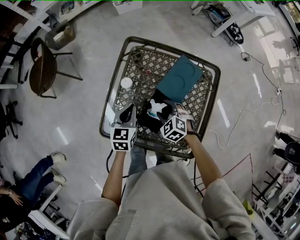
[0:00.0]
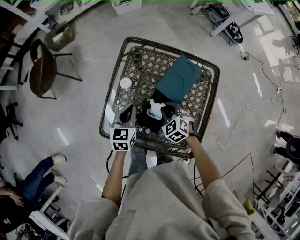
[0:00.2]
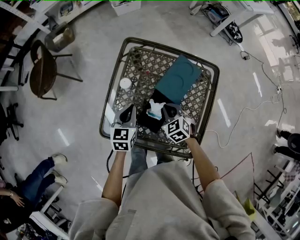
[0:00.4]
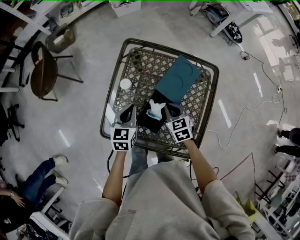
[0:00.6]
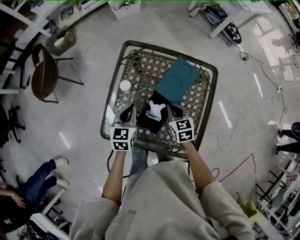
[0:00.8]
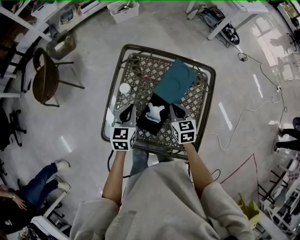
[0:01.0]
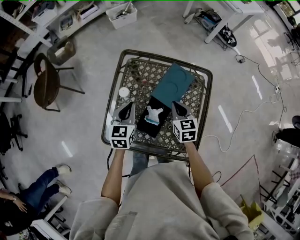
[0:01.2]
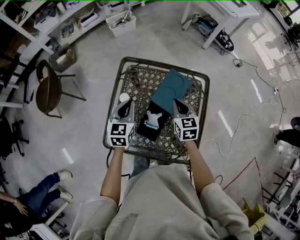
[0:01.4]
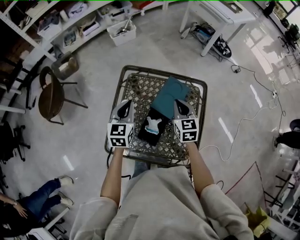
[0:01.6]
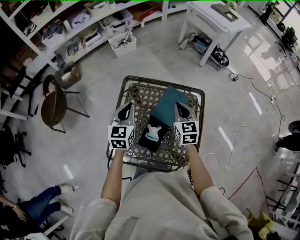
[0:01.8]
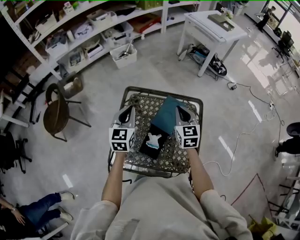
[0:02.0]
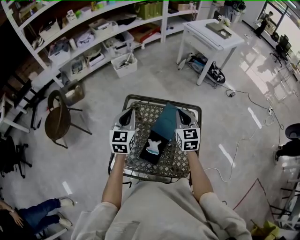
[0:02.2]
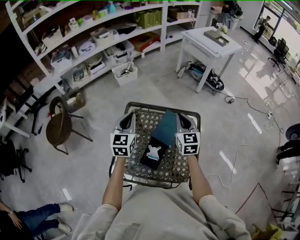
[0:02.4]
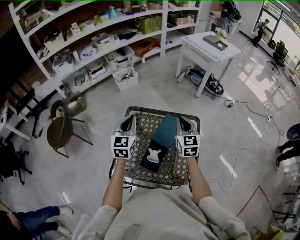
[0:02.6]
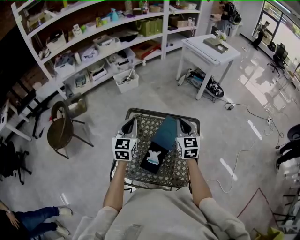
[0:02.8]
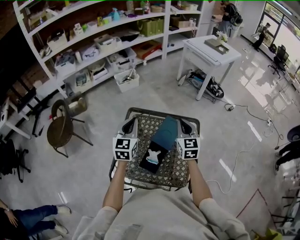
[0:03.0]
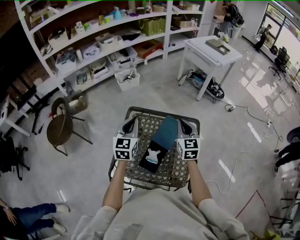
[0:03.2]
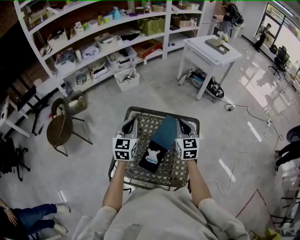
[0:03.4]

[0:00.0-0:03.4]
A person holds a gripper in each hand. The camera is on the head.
0:00.0 to 0:01.6: The right gripper is displaced upward, to the right and forward by some 25 cm, changes its angle by about 50 degrees, and closes its fingers. The left gripper goes some 15 cm upward and forward.
0:01.6 to 0:03.4: The two grippers go approximately 15 cm upward.

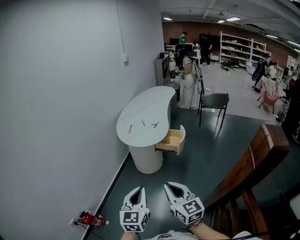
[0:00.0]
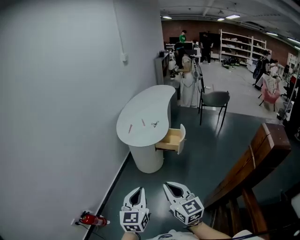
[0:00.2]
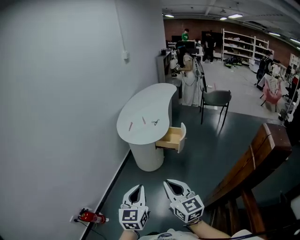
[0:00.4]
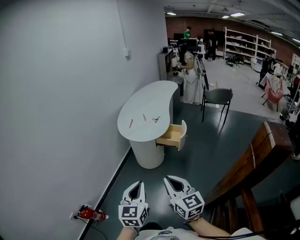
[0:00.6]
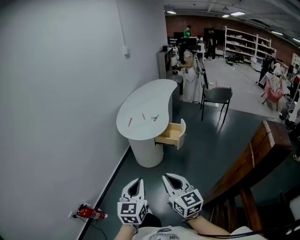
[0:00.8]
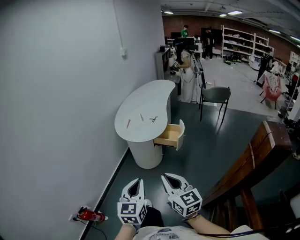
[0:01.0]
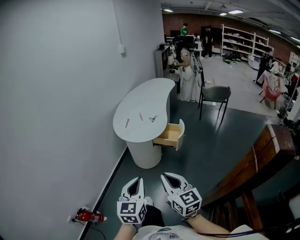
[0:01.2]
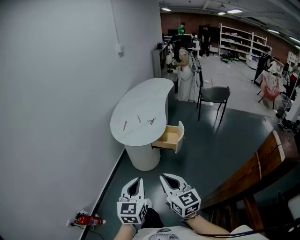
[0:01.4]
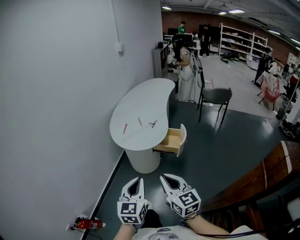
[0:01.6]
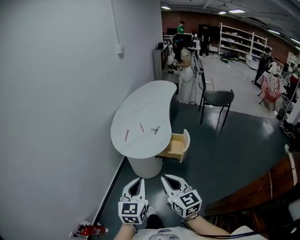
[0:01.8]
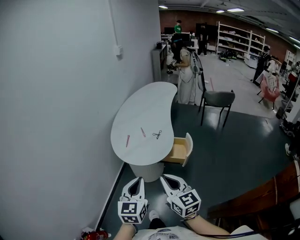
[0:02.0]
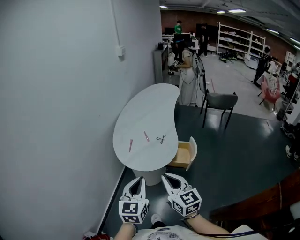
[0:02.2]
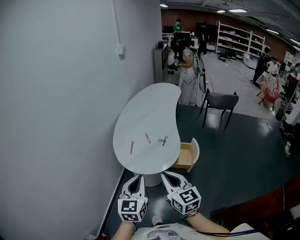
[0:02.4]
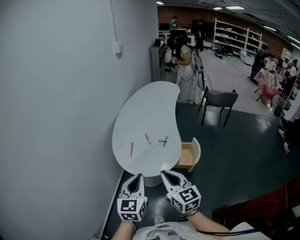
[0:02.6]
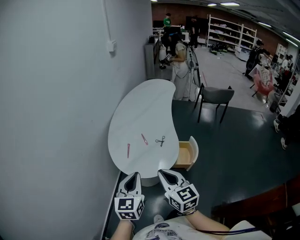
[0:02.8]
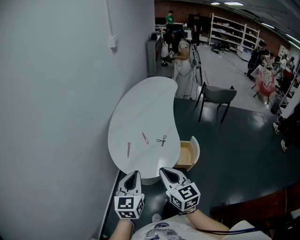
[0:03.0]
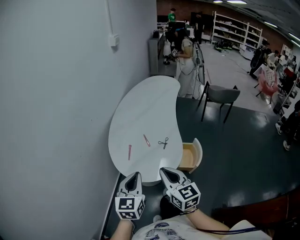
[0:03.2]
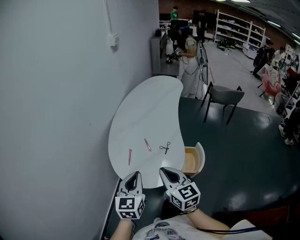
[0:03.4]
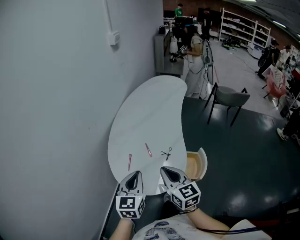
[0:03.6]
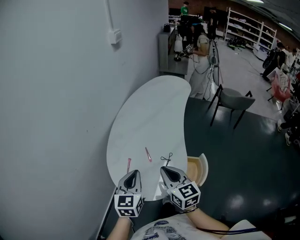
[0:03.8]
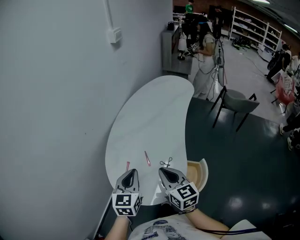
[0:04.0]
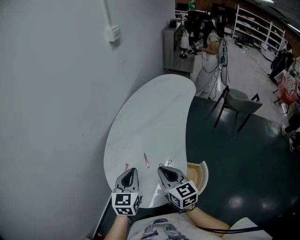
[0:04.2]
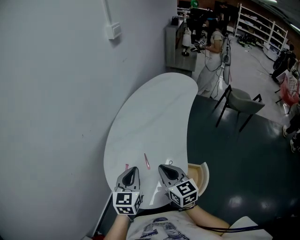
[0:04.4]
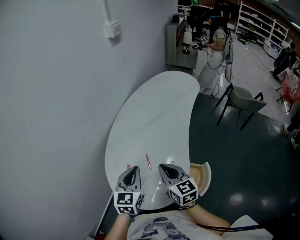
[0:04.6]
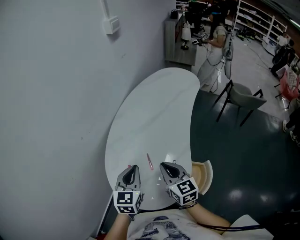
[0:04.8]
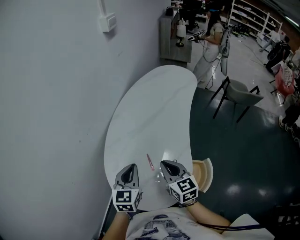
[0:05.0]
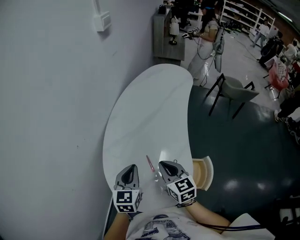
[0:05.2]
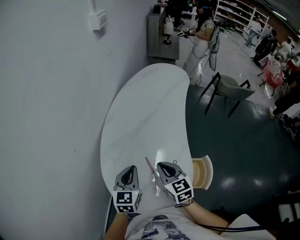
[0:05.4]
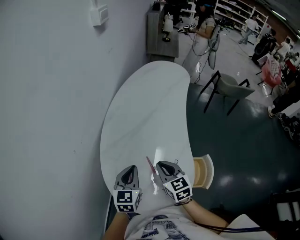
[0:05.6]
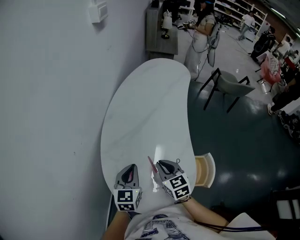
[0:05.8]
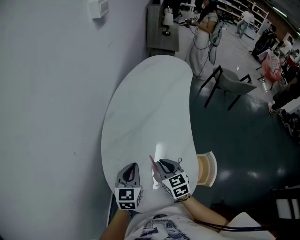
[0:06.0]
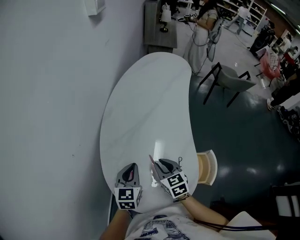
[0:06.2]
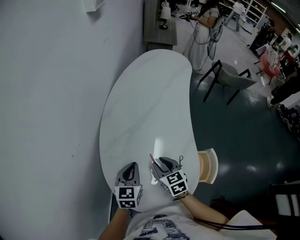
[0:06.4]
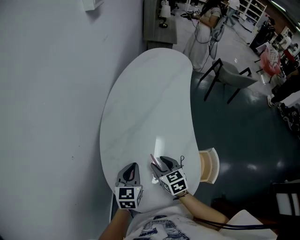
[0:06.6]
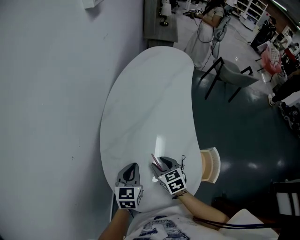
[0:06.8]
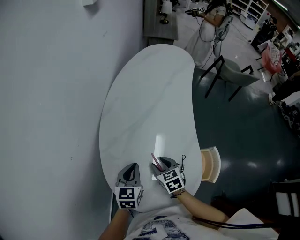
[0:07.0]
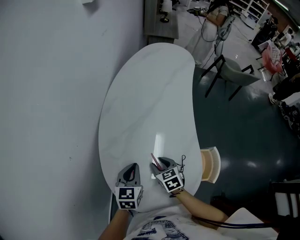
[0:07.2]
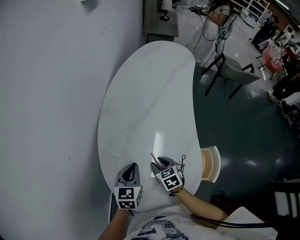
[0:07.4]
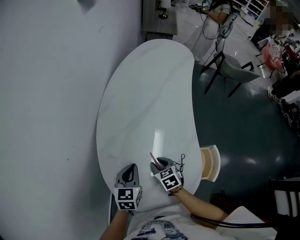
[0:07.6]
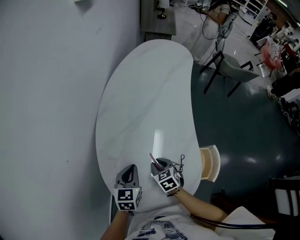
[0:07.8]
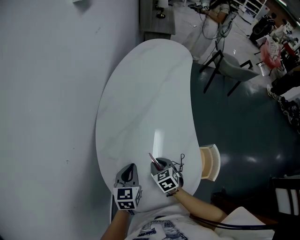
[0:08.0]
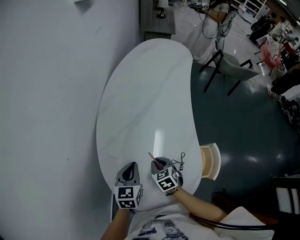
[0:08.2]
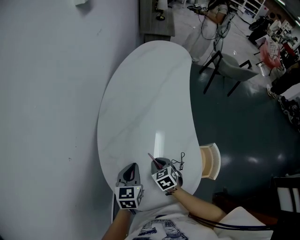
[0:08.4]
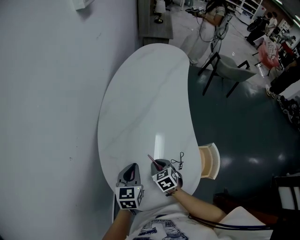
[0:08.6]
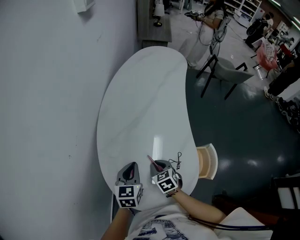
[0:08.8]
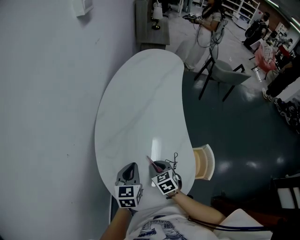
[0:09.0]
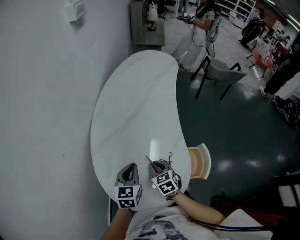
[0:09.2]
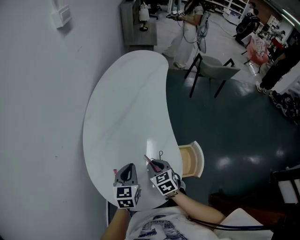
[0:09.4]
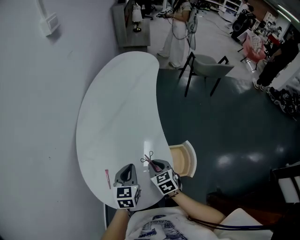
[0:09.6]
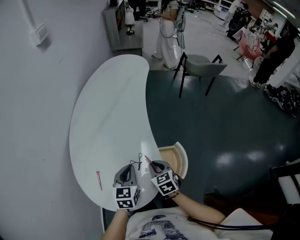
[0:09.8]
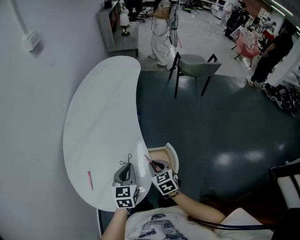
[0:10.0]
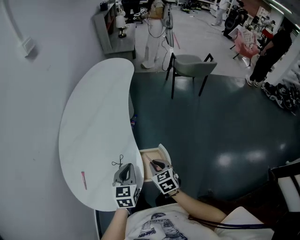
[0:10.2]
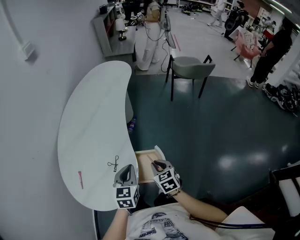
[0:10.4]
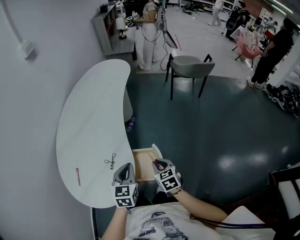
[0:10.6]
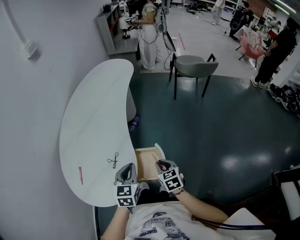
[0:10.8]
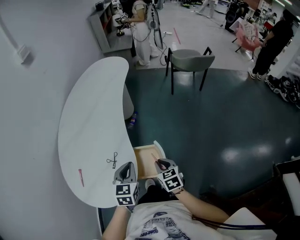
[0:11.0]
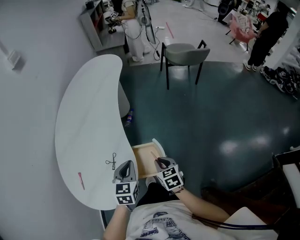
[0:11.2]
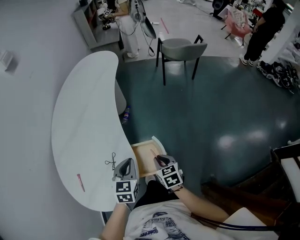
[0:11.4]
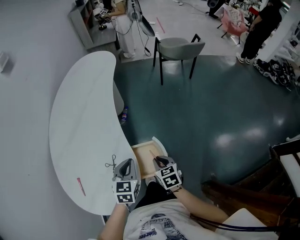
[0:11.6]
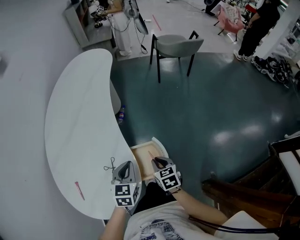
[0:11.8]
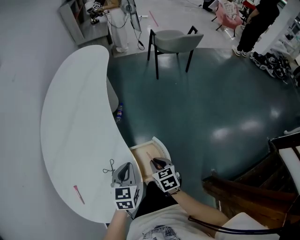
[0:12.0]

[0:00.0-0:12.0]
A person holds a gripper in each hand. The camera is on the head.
0:00.0 to 0:01.6: The two grippers go roughly 15 cm forward.
0:01.6 to 0:03.0: The grippers both shift forward by some 30 cm.
0:03.0 to 0:04.4: The grippers both shift forward by about 30 cm.
0:04.4 to 0:06.0: The right gripper shifts some 15 cm downward, forward and to the left, and swivels approximately 20 degrees, while the left gripper heads forward, downward and to the left, covering some 15 cm.
0:06.0 to 0:07.6: The right gripper travels downward by roughly 15 cm, and opens its fingers. Meanwhile the left gripper travels downward by some 5 cm.
0:07.6 to 0:09.0: The right gripper moves some 5 cm.
0:09.0 to 0:10.4: The grippers both shift to the right by roughly 35 cm.
0:10.4 to 0:12.0: Both grippers travel together downward, approximately 10 cm.

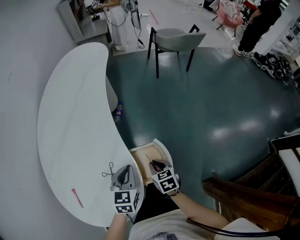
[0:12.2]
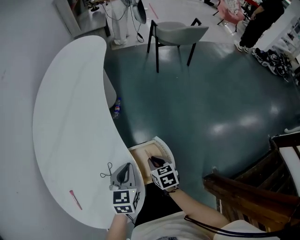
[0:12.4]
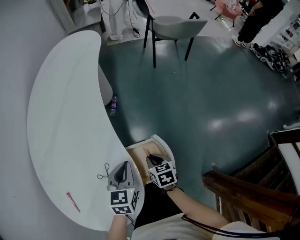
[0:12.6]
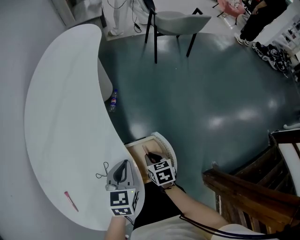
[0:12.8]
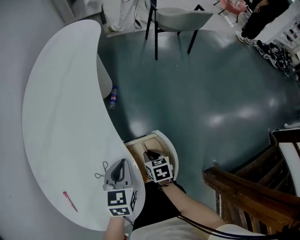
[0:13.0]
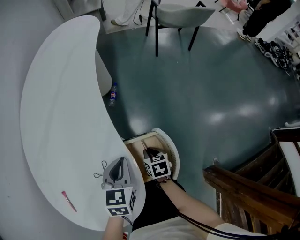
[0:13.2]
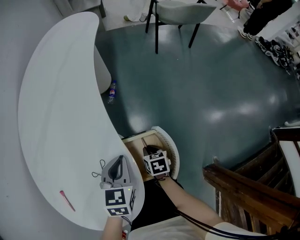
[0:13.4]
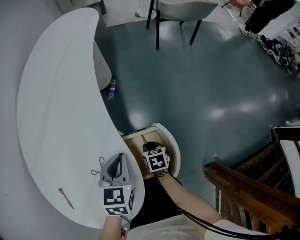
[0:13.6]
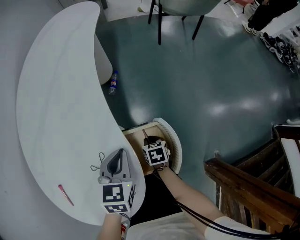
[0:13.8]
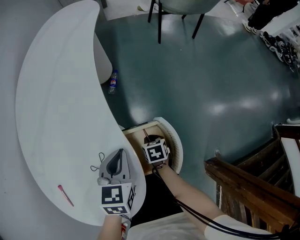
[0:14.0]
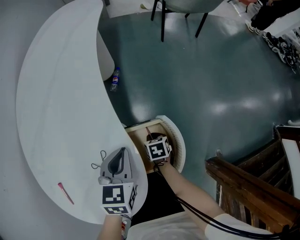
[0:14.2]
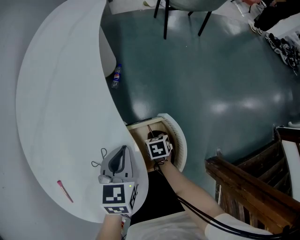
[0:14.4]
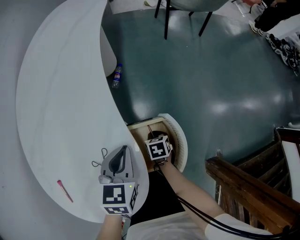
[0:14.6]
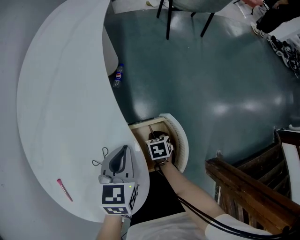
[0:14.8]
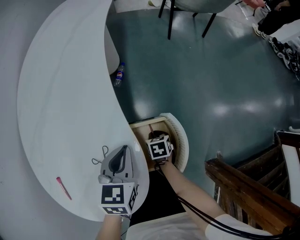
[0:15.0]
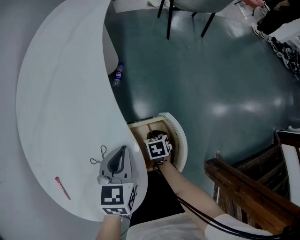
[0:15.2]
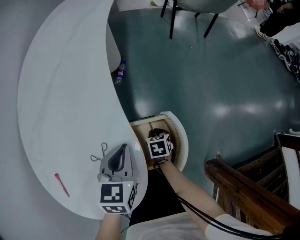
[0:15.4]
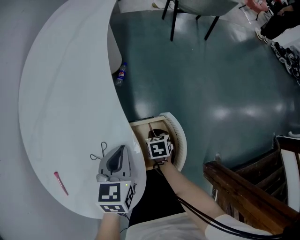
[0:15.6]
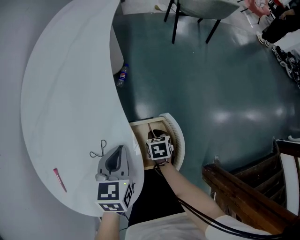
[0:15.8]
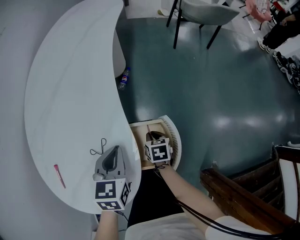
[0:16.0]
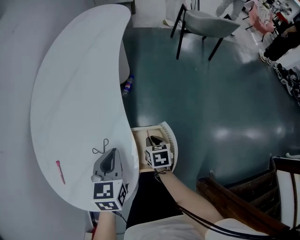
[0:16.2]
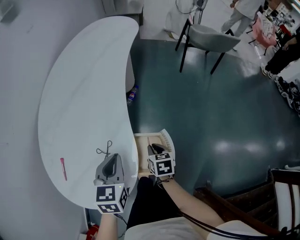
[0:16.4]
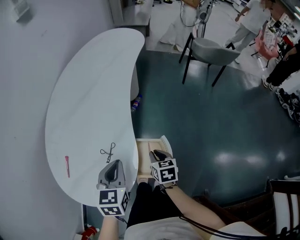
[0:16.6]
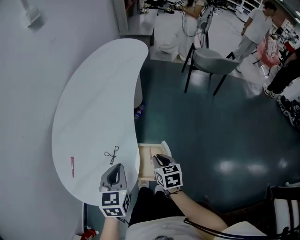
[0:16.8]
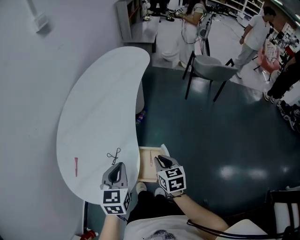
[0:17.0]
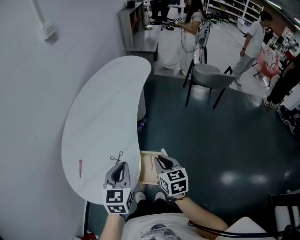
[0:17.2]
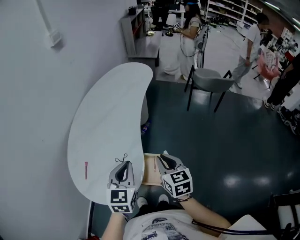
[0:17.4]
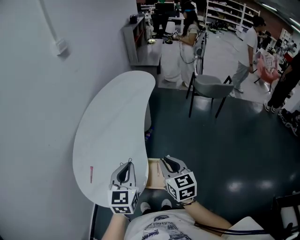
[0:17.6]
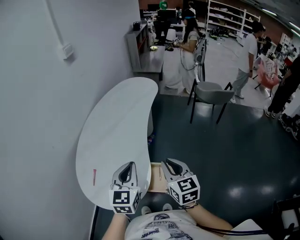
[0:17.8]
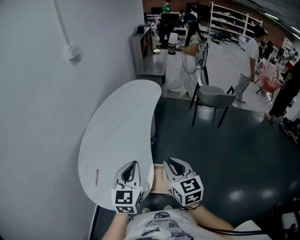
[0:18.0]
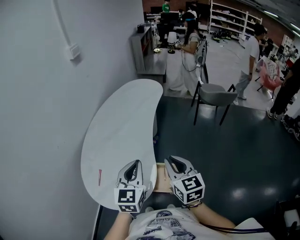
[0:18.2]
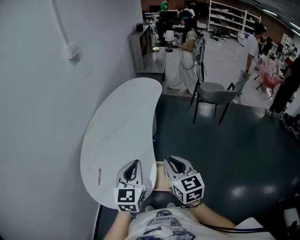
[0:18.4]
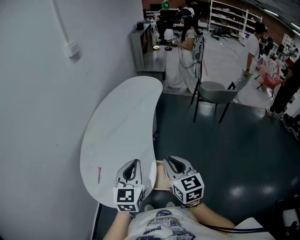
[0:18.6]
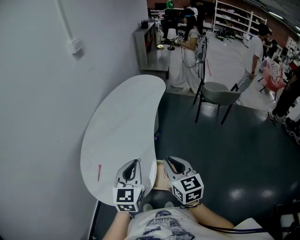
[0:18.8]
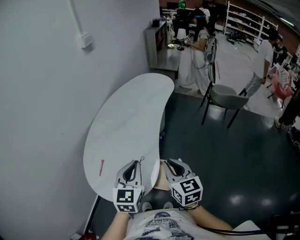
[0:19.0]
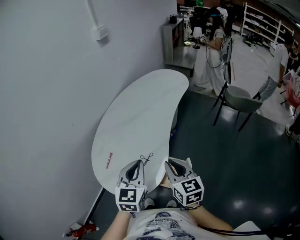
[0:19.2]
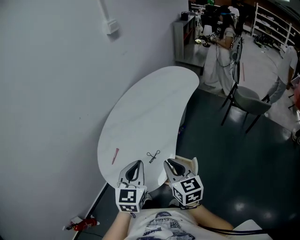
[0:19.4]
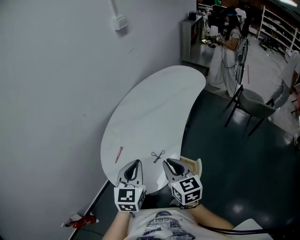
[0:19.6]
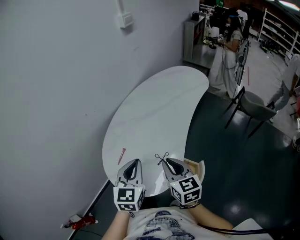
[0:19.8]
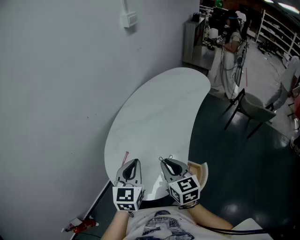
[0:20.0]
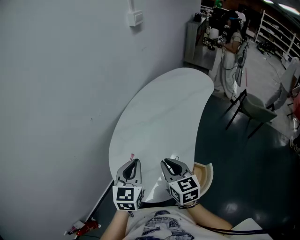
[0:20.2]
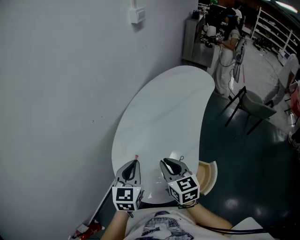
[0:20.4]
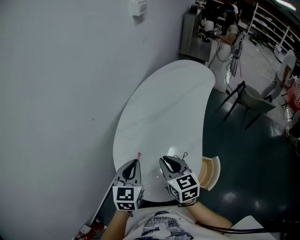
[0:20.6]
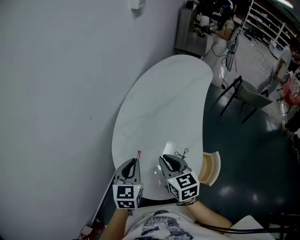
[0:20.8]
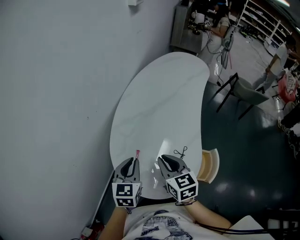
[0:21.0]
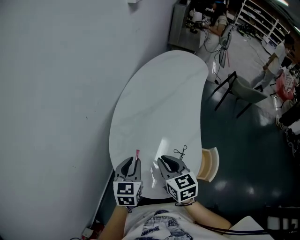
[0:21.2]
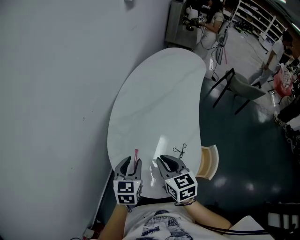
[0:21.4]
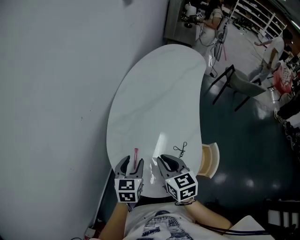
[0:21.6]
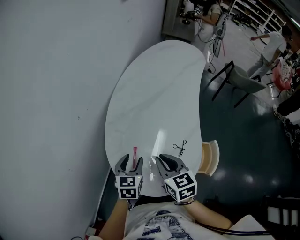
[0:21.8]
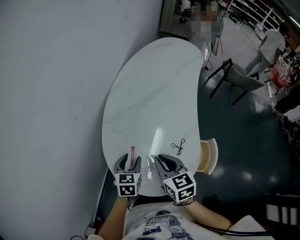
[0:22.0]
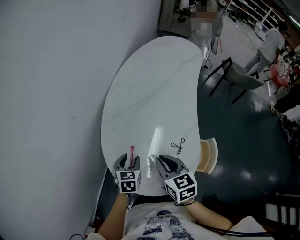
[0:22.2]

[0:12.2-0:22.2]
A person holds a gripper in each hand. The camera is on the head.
0:12.2 to 0:13.6: The left gripper is displaced downward by approximately 5 cm; the right gripper is displaced downward by approximately 15 cm.
0:13.6 to 0:15.0: There are only small adjustments of the grippers.
0:15.0 to 0:16.4: The left gripper goes roughly 5 cm upward, while the right gripper travels upward by about 15 cm.
0:16.4 to 0:18.0: The left gripper is displaced upward by approximately 25 cm, and swivels roughly 30 degrees. The right gripper heads upward, covering about 40 cm, and points its fingers roughly 30 degrees further upward.
0:18.0 to 0:19.4: The two grippers go about 10 cm to the left.
0:19.4 to 0:20.8: The grippers both shift to the left and forward by roughly 25 cm.
0:20.8 to 0:22.2: The right gripper heads downward, covering approximately 5 cm, while the left gripper moves downward, about 15 cm, and opens.
